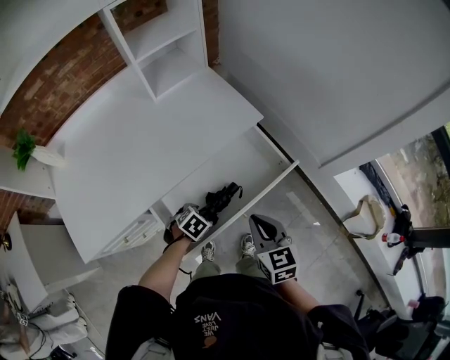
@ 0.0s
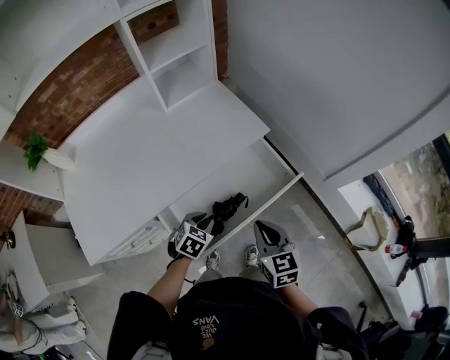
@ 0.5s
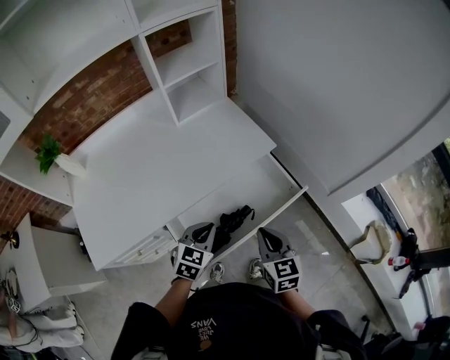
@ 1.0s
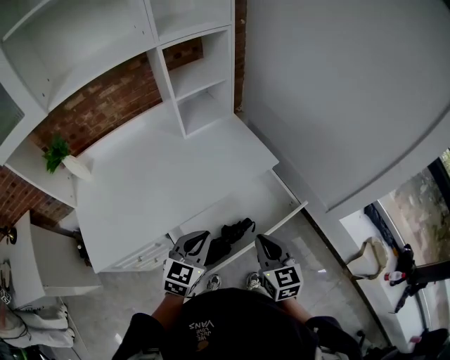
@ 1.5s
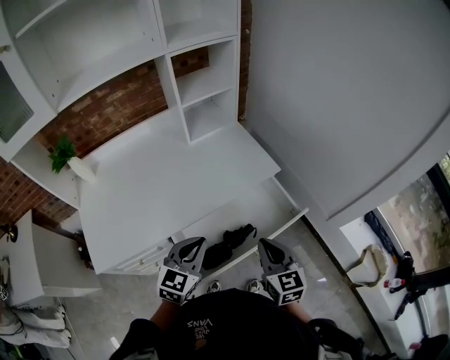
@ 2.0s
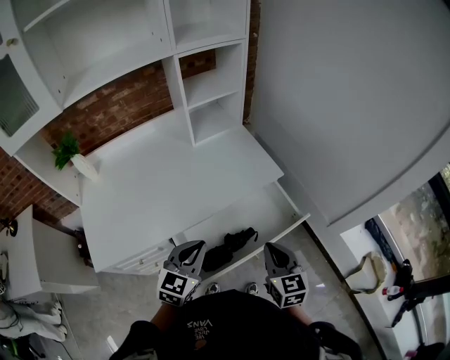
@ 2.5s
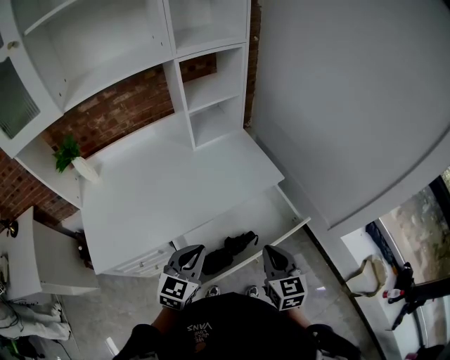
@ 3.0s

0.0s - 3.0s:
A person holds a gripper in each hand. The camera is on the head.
0.0s - 1.5s: The left gripper is displaced upward by roughly 25 cm, tilts its fingers roughly 50 degrees upward, and closes. Meanwhile the right gripper is displaced upward by roughly 5 cm.
1.5s - 3.0s: There are only small adjustments of the grippers.

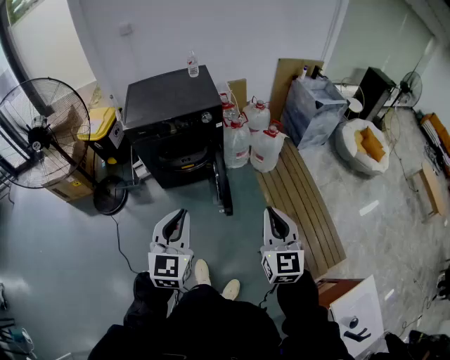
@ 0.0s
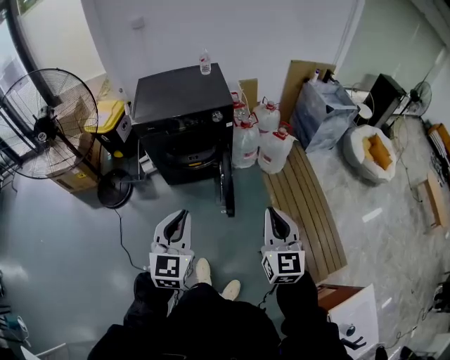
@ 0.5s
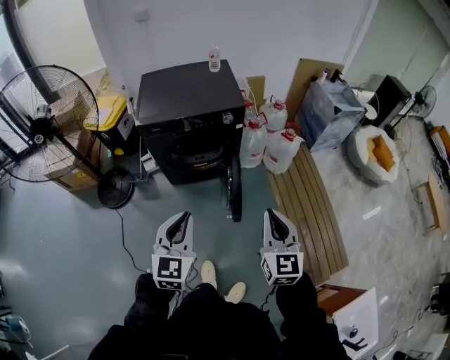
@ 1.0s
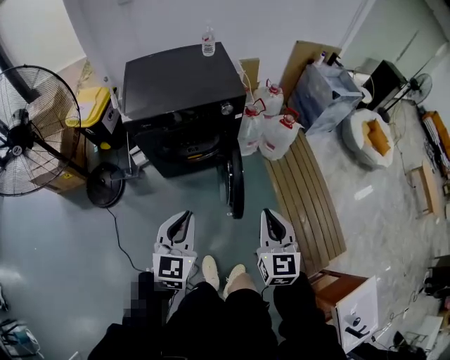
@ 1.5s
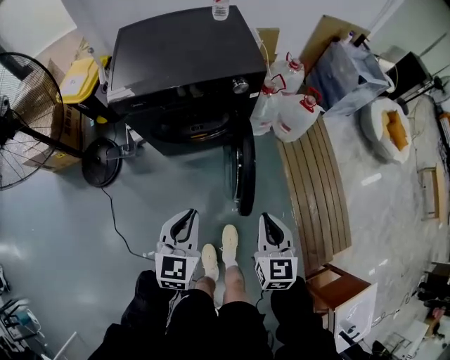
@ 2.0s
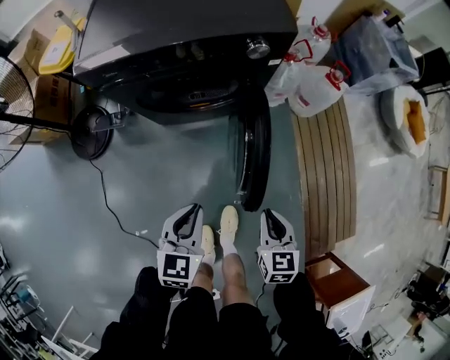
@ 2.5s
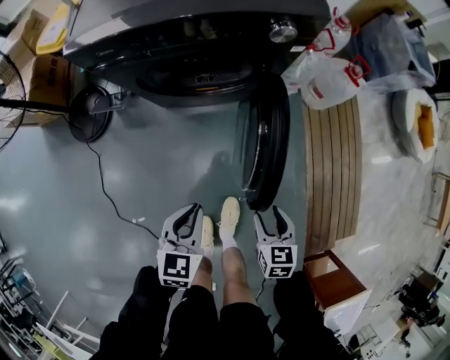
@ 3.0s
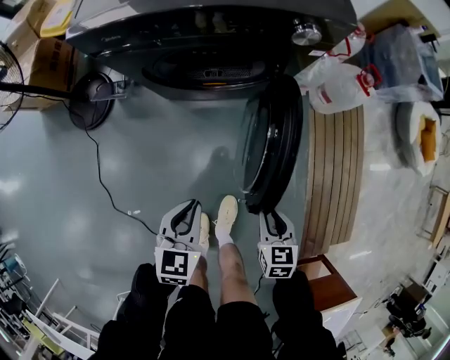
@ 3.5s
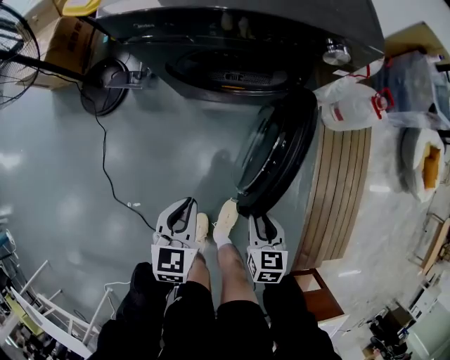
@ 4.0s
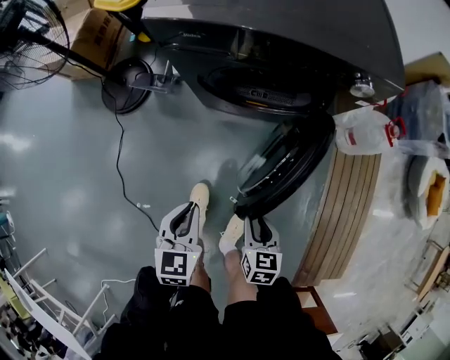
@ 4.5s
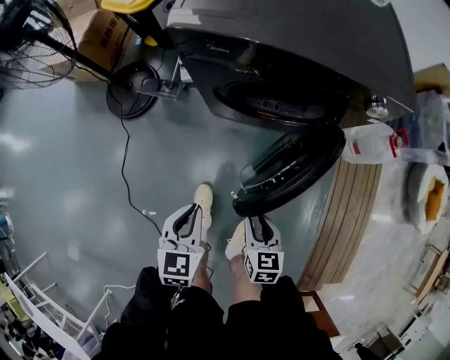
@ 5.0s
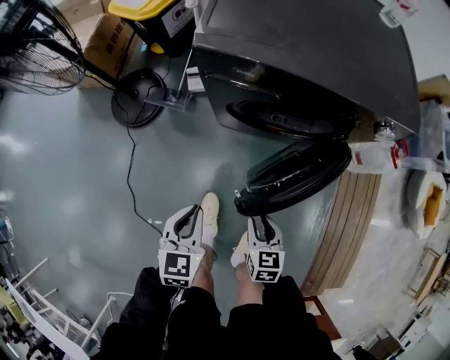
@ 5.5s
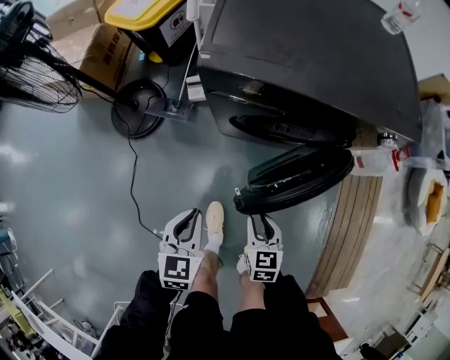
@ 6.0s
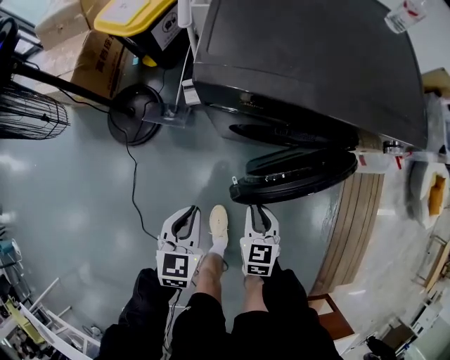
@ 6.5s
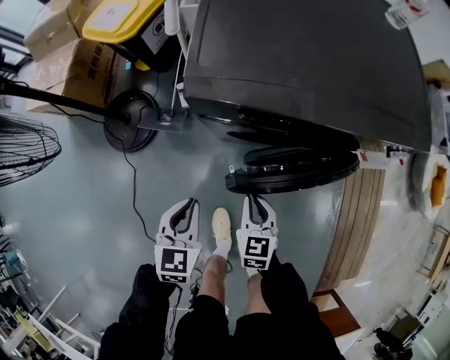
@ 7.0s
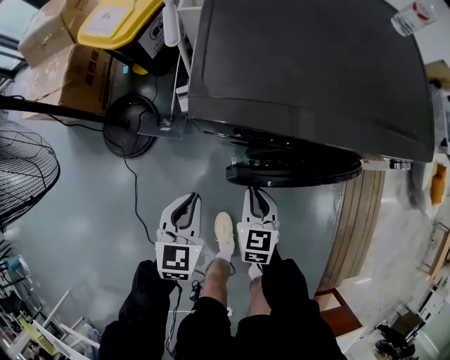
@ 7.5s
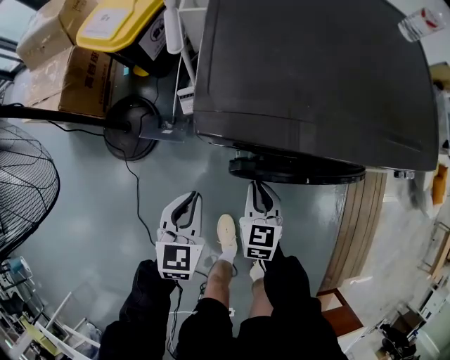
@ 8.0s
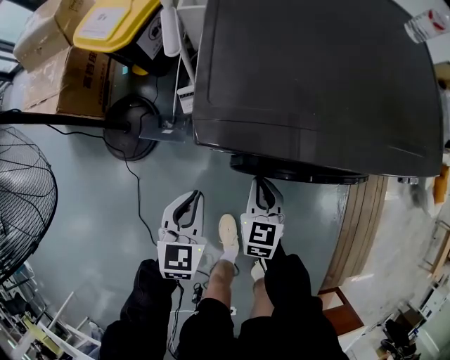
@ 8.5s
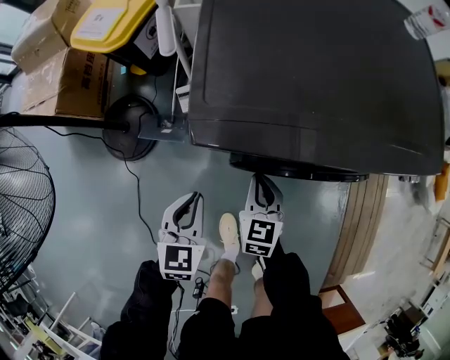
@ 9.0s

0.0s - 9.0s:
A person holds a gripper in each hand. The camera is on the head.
0.0s - 2.0s: The right gripper shifts approximately 40 cm downward, forward and to the left, and rotates approximately 20 degrees. The left gripper heads forward, downward and to the left, covering approximately 35 cm.
2.0s - 4.5s: The right gripper heads downward, covering roughly 30 cm, rotates roughly 30 degrees, and opens up, while the left gripper travels downward and to the left by roughly 25 cm, and swivels approximately 30 degrees.
4.5s - 7.0s: The grippers both shift forward and to the left by approximately 30 cm. The right gripper closes.
7.0s - 9.0s: Both grippers travel together forward, some 10 cm.

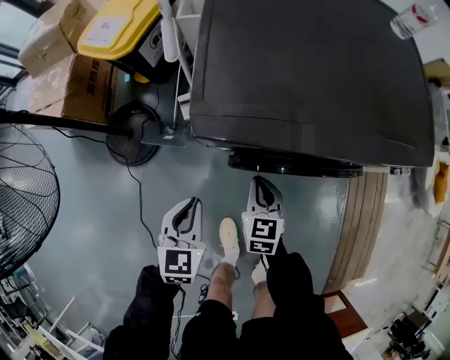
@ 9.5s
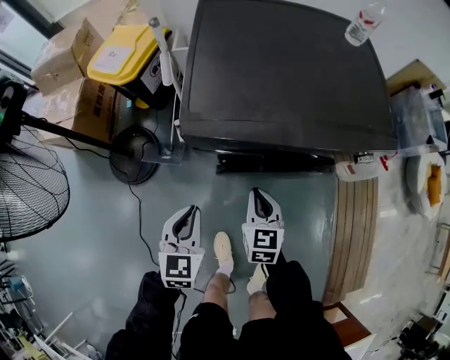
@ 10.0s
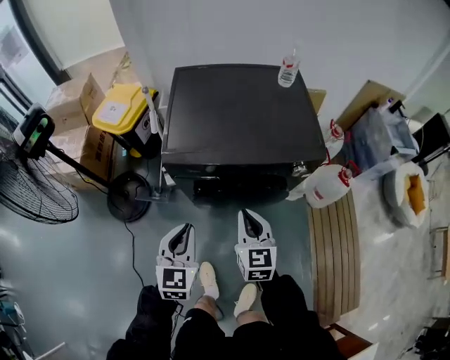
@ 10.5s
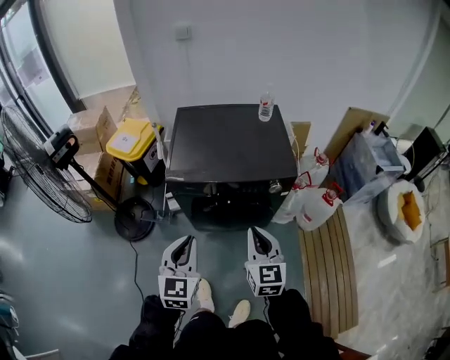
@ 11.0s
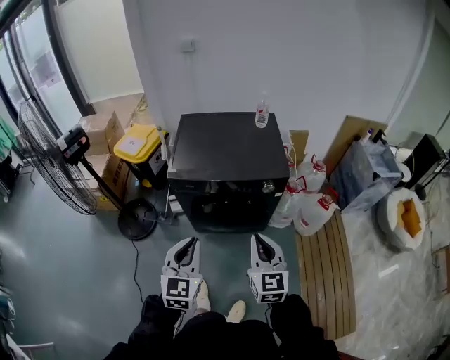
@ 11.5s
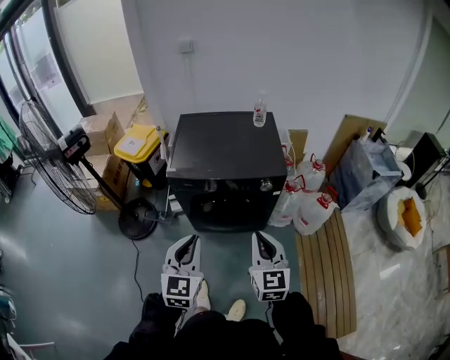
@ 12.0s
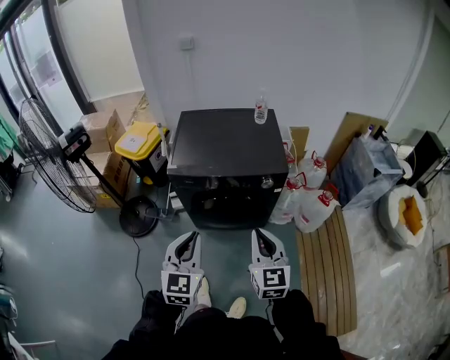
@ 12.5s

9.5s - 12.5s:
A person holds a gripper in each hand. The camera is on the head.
9.5s - 11.0s: Both grippers move upward, to the right and backward, roughly 50 cm. The left gripper rotates about 20 degrees, while the right gripper rotates some 30 degrees.
11.0s - 12.5s: Both grippers move backward, to the right and upward, some 10 cm.

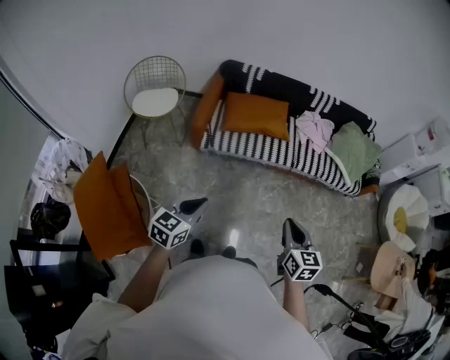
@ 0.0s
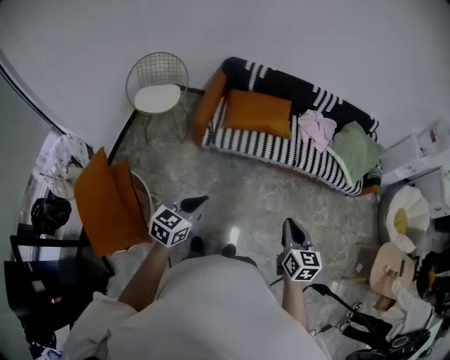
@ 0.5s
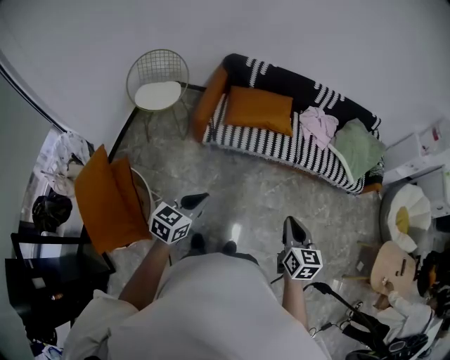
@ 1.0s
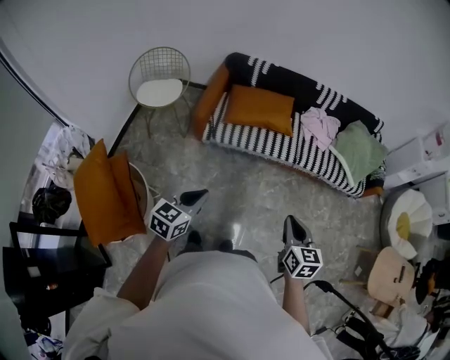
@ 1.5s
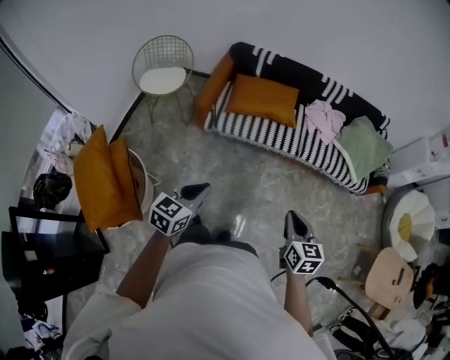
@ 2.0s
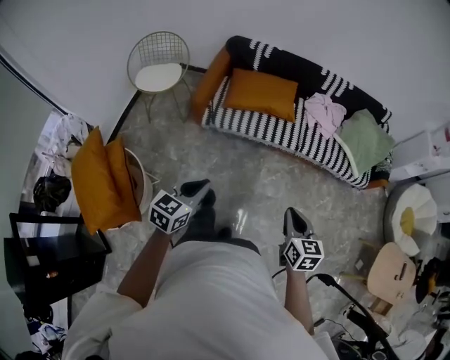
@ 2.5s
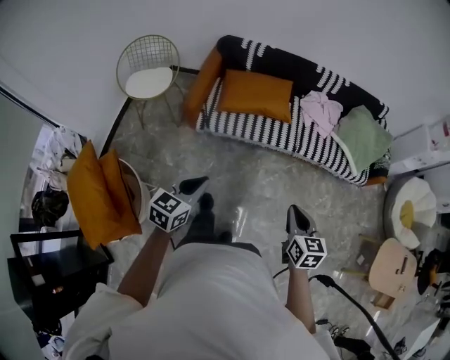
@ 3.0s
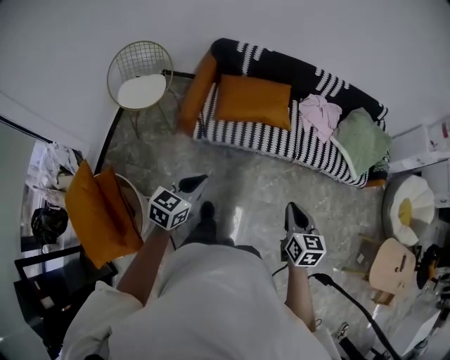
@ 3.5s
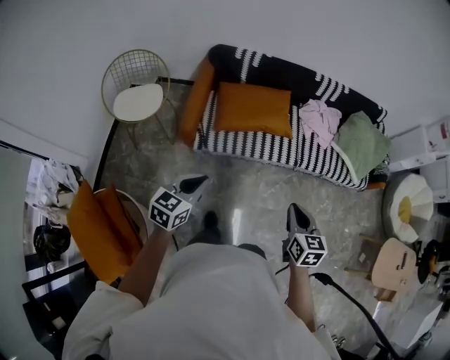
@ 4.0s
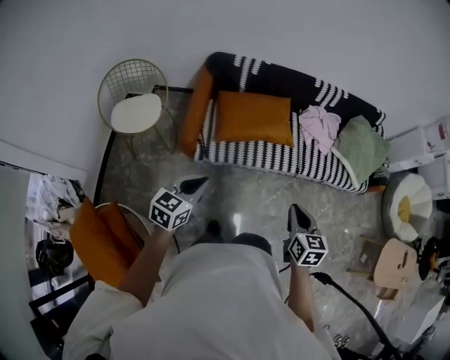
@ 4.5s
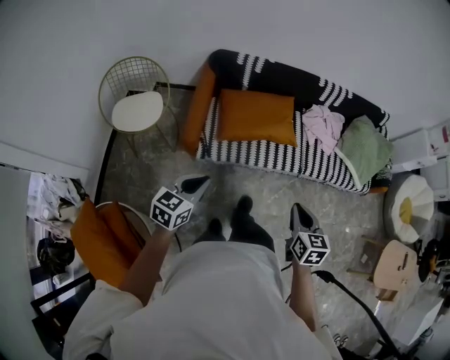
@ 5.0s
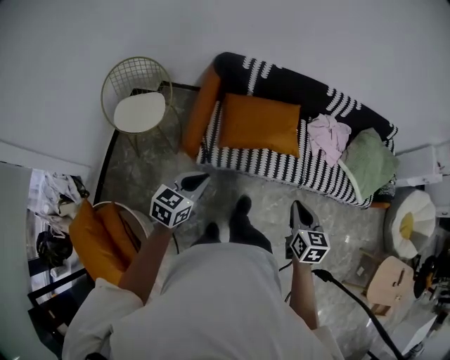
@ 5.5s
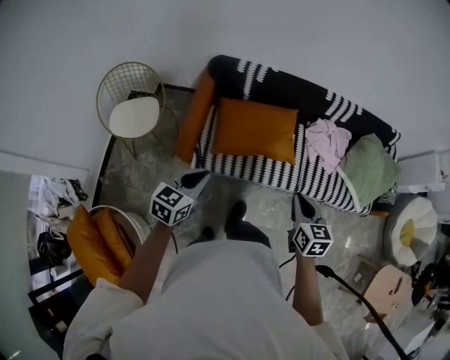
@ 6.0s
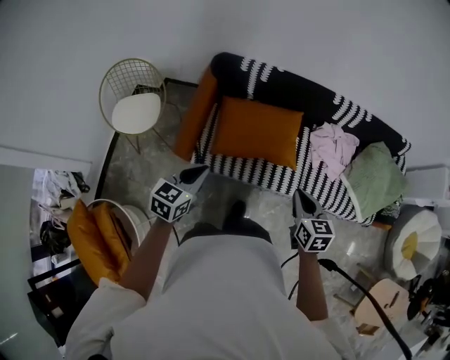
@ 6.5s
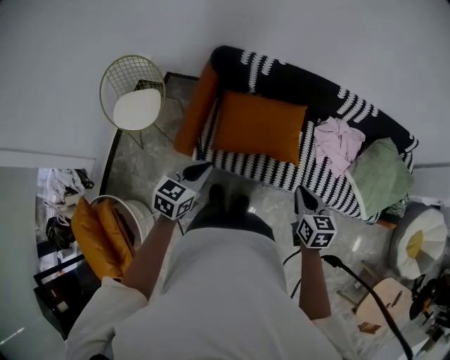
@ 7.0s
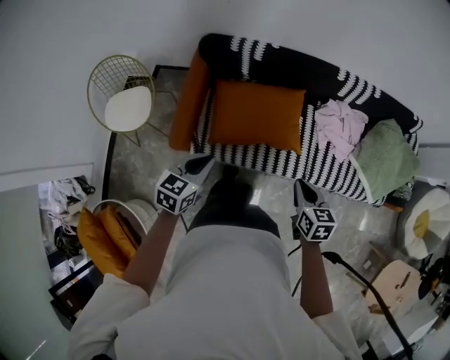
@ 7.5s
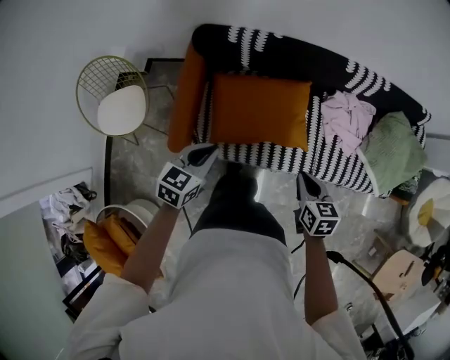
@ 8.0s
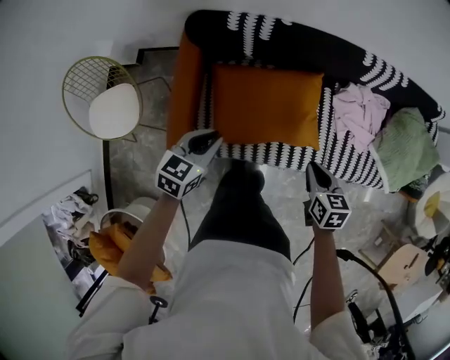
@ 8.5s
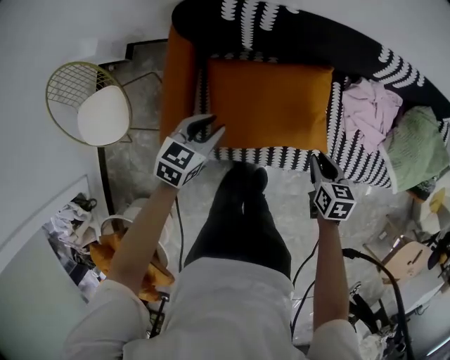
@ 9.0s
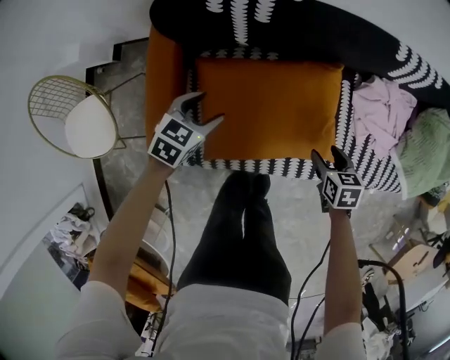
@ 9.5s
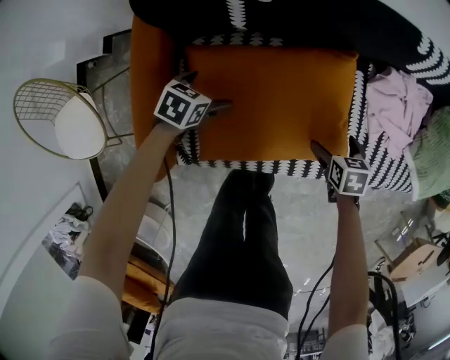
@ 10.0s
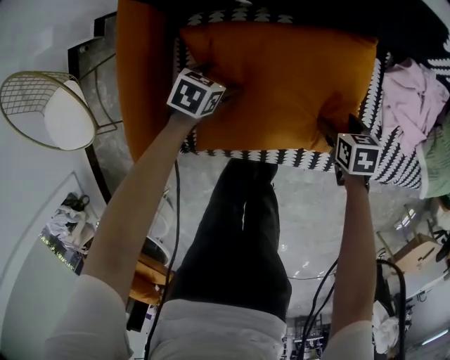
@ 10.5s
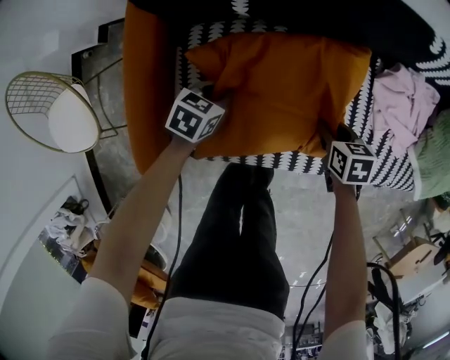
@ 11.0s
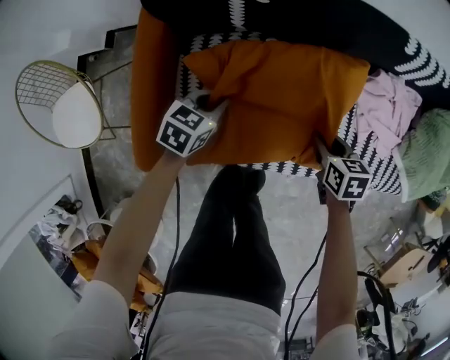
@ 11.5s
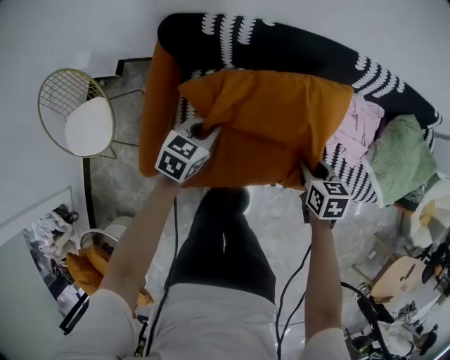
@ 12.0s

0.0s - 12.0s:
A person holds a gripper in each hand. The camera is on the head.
0.0s - 2.0s: Both grippers move to the right, about 10 cm.
2.0s - 4.0s: Both grippers move forward and to the left, some 30 cm.
4.0s - 6.0s: The grippers both shift forward by approximately 25 cm.
6.0s - 8.0s: Both grippers move forward and downward, about 25 cm.
8.0s - 10.0s: The two grippers go some 50 cm downward and forward. The right gripper changes its angle by some 20 degrees, and opens up. The left gripper turns by about 30 degrees, and opens its fingers.
10.0s - 12.0s: Both grippers travel together upward, about 25 cm. The right gripper closes up. Meanwhile the left gripper rotates approximately 20 degrees, and closes up.
